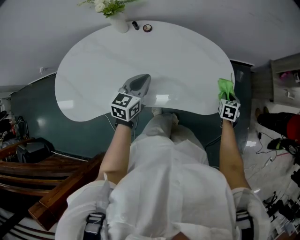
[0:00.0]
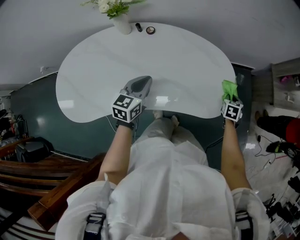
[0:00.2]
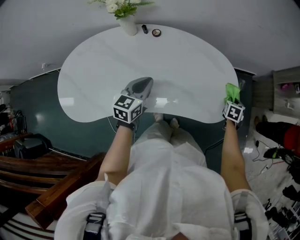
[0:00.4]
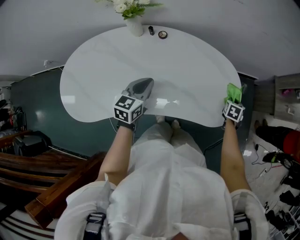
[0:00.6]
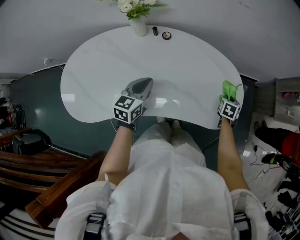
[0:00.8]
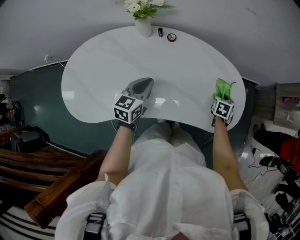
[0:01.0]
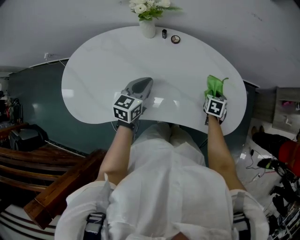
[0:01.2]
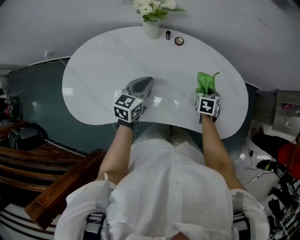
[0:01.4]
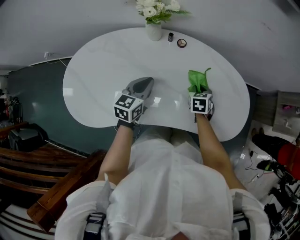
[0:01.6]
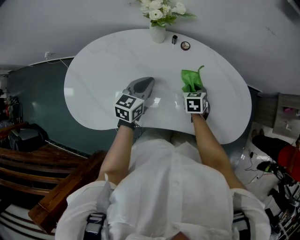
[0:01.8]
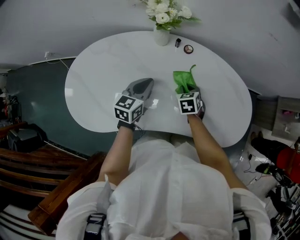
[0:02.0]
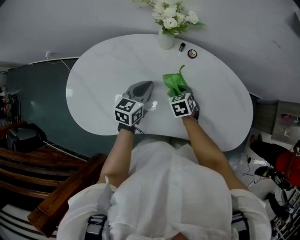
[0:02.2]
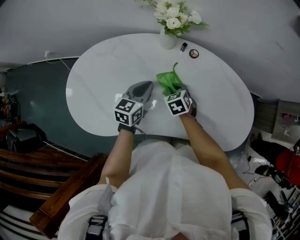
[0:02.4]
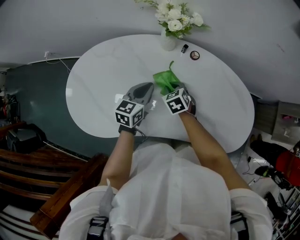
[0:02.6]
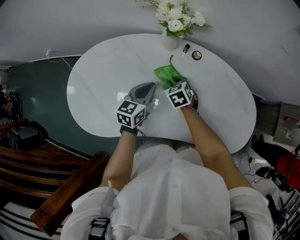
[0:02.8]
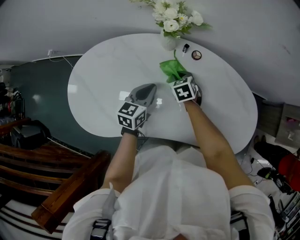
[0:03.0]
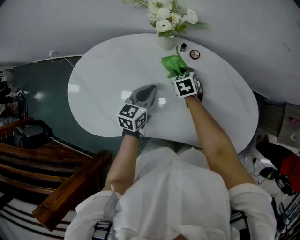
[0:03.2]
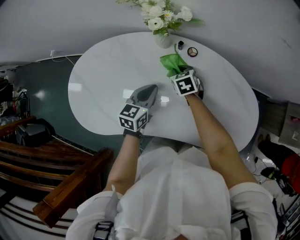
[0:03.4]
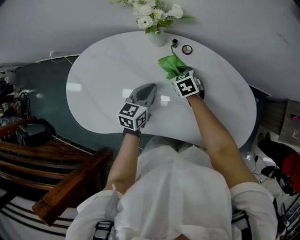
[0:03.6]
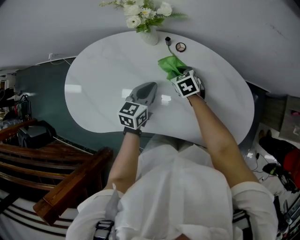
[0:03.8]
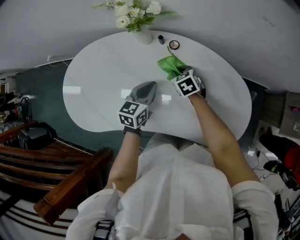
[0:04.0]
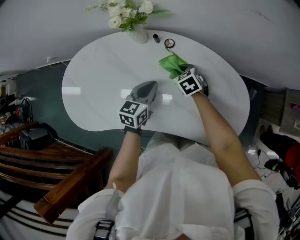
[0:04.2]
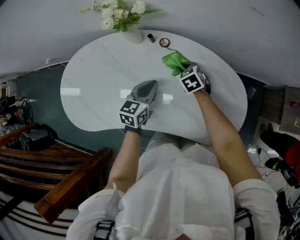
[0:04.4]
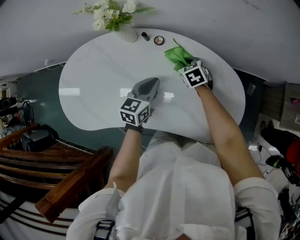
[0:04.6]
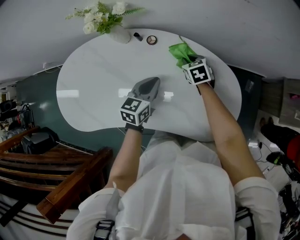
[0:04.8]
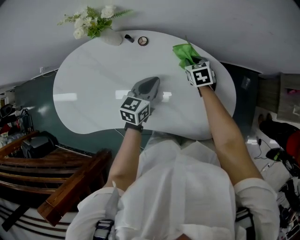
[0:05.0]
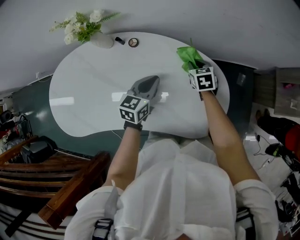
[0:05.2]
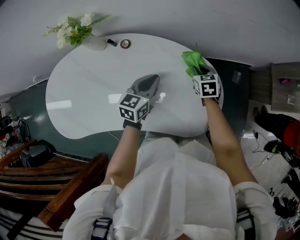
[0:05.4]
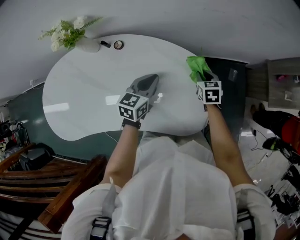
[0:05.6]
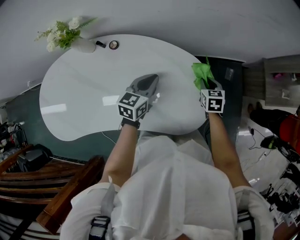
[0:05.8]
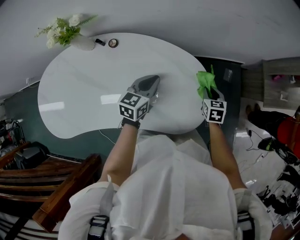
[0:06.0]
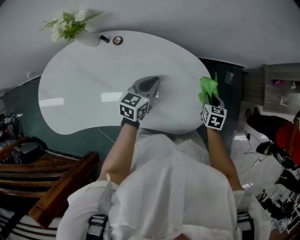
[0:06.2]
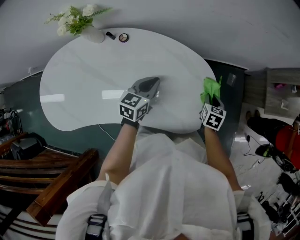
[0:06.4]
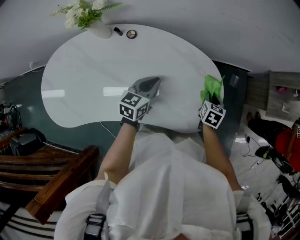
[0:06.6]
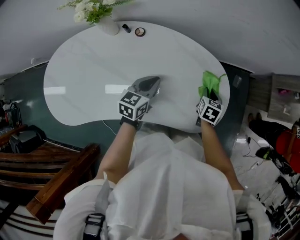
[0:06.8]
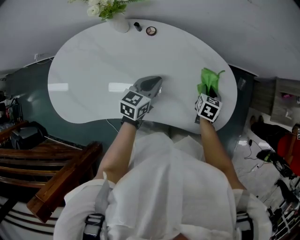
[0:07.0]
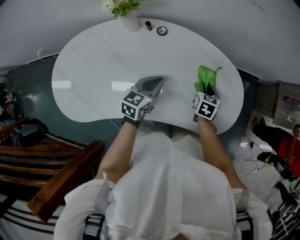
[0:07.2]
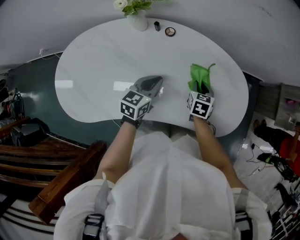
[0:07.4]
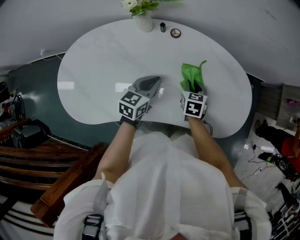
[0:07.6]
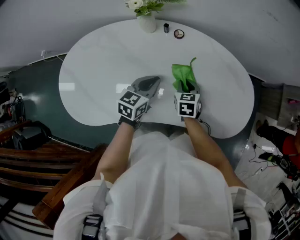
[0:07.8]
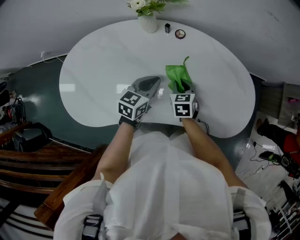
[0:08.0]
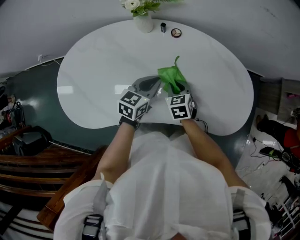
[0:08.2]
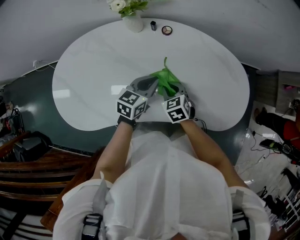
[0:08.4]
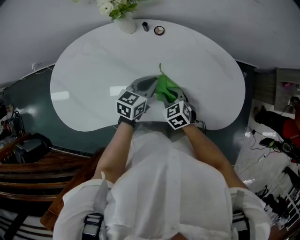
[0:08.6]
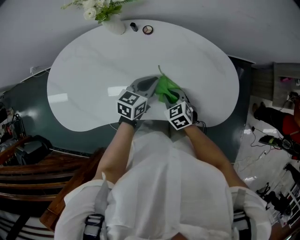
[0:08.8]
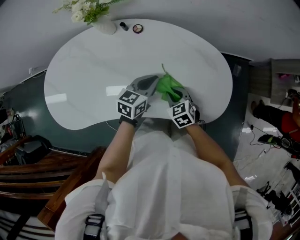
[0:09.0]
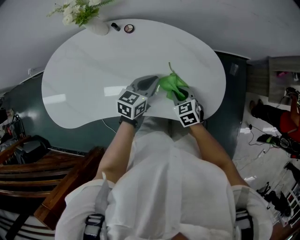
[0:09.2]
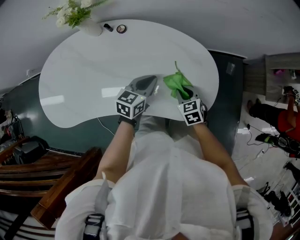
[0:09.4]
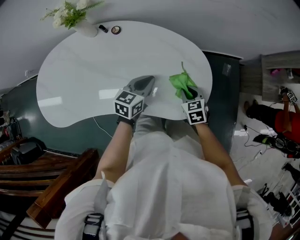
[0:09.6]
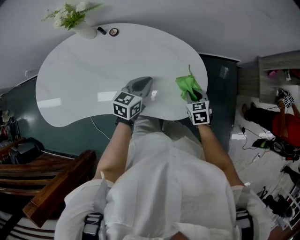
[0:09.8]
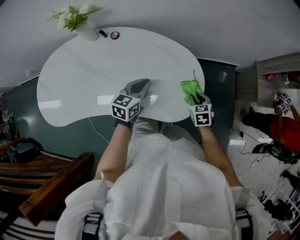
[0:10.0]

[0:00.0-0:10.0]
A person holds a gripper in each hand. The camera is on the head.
0:00.0 to 0:01.4: The right gripper moves to the left, some 30 cm; the left gripper moves to the left, approximately 15 cm.
0:01.4 to 0:02.8: The left gripper moves to the left, roughly 10 cm. The right gripper is displaced to the left by about 30 cm, and turns by some 40 degrees.
0:02.8 to 0:04.2: Both grippers move to the right, some 15 cm.
0:04.2 to 0:05.8: The right gripper changes place by approximately 40 cm, and changes its angle by approximately 40 degrees. Meanwhile the left gripper shifts by approximately 25 cm.
0:05.8 to 0:07.2: Both grippers travel together to the left and backward, approximately 20 cm.
0:07.2 to 0:08.6: The right gripper heads to the left and backward, covering approximately 25 cm, and rotates about 40 degrees.
0:08.6 to 0:10.0: The right gripper goes about 40 cm to the right, and changes its angle by roughly 20 degrees, while the left gripper goes about 20 cm to the right.

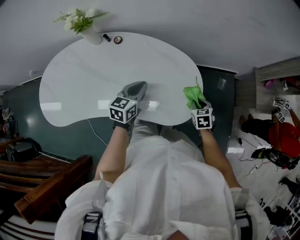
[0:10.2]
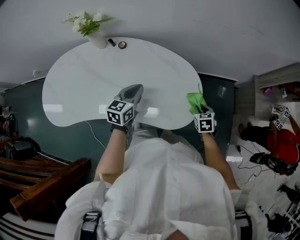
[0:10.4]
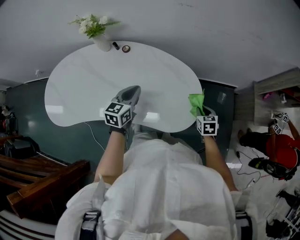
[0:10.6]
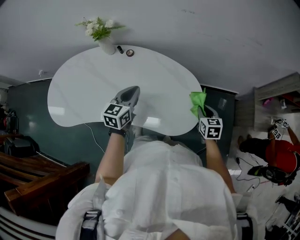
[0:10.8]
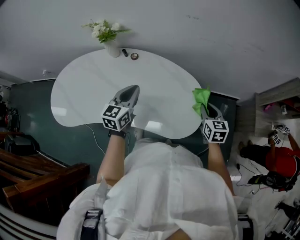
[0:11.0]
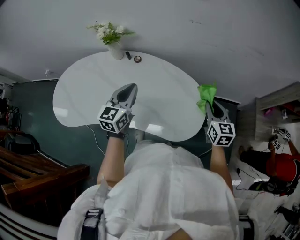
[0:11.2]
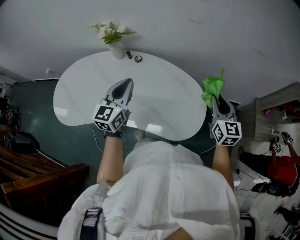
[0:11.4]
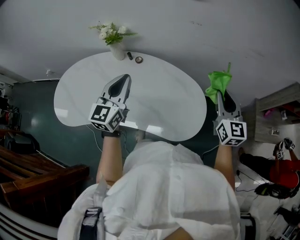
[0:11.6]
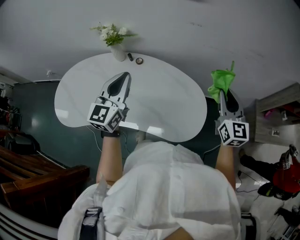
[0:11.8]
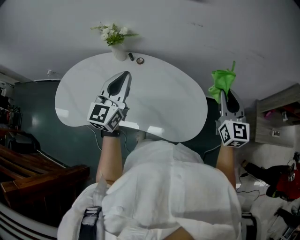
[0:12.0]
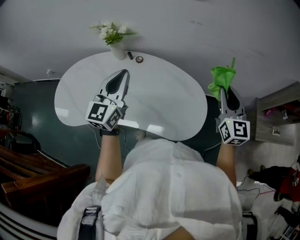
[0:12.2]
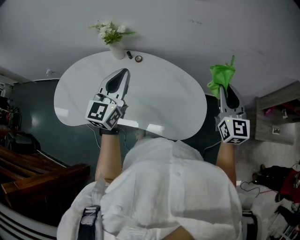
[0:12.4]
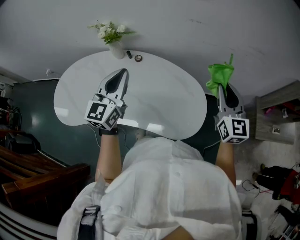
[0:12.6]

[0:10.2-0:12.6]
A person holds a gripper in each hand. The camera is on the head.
0:10.2 to 0:11.4: The left gripper heads upward and to the left, covering roughly 20 cm, and turns by approximately 30 degrees, while the right gripper is displaced upward by approximately 30 cm, and angles its fingers upward, by roughly 40 degrees.
0:11.4 to 0:12.6: The grippers both shift upward by about 5 cm.

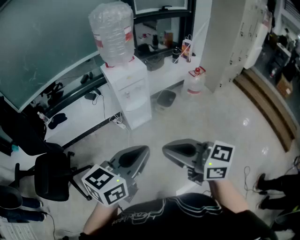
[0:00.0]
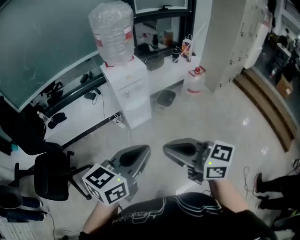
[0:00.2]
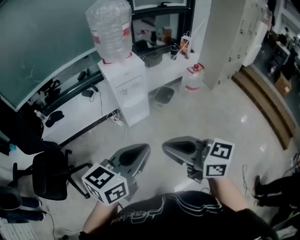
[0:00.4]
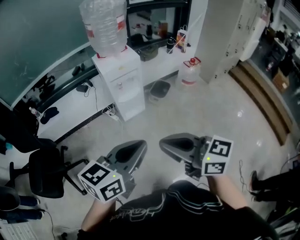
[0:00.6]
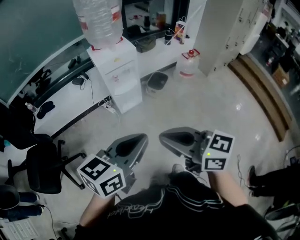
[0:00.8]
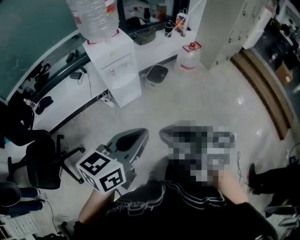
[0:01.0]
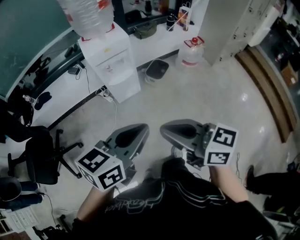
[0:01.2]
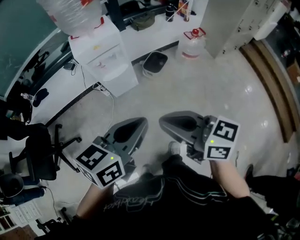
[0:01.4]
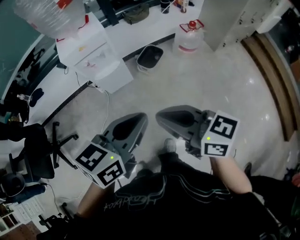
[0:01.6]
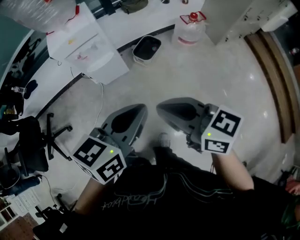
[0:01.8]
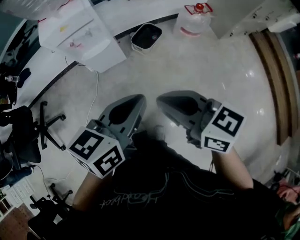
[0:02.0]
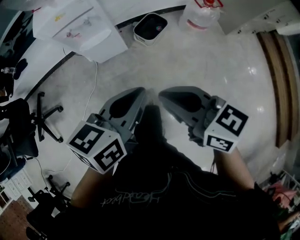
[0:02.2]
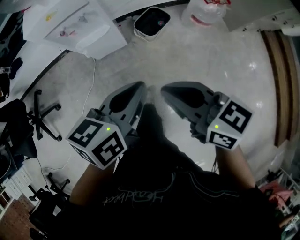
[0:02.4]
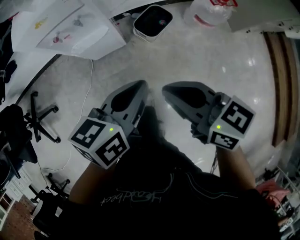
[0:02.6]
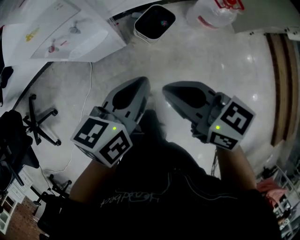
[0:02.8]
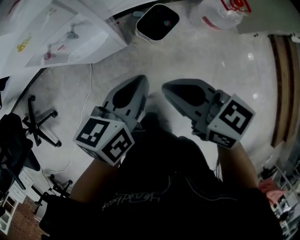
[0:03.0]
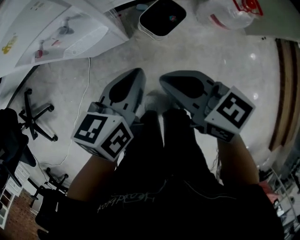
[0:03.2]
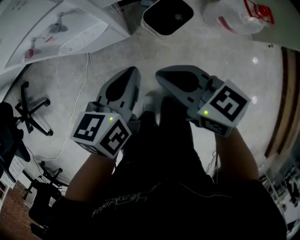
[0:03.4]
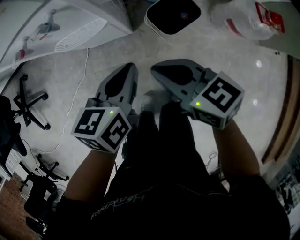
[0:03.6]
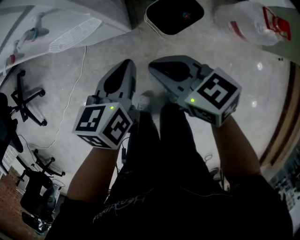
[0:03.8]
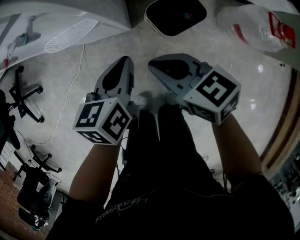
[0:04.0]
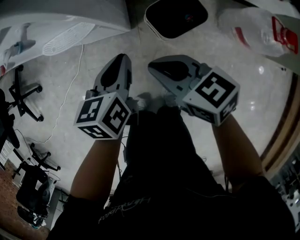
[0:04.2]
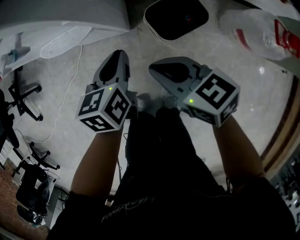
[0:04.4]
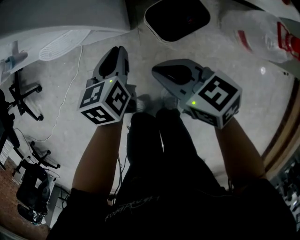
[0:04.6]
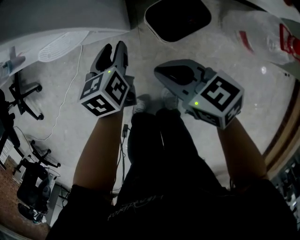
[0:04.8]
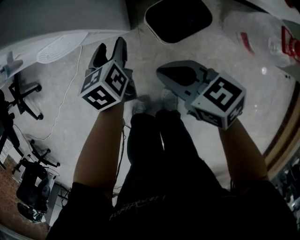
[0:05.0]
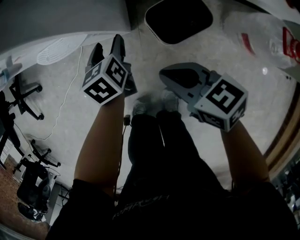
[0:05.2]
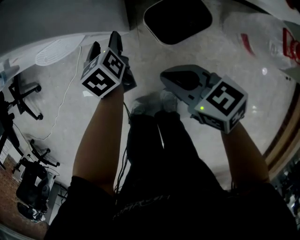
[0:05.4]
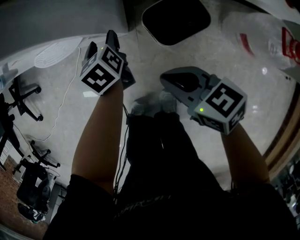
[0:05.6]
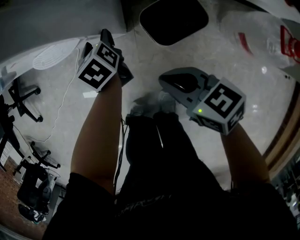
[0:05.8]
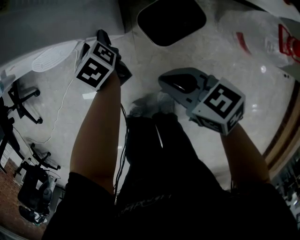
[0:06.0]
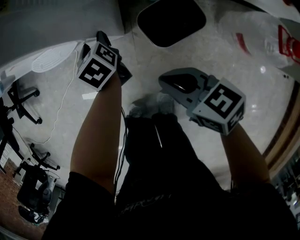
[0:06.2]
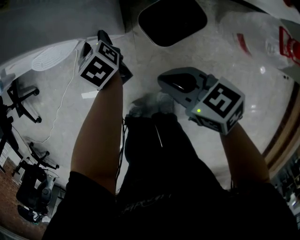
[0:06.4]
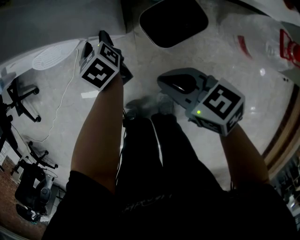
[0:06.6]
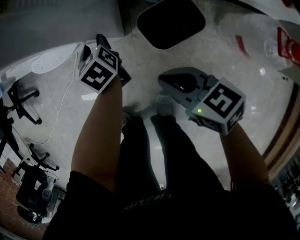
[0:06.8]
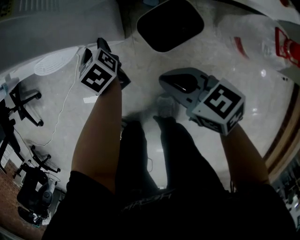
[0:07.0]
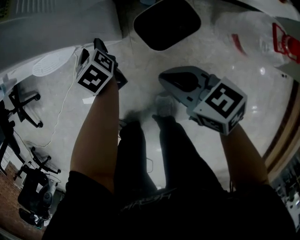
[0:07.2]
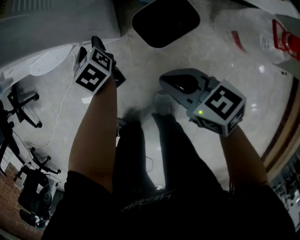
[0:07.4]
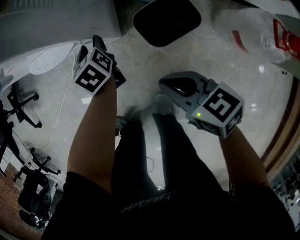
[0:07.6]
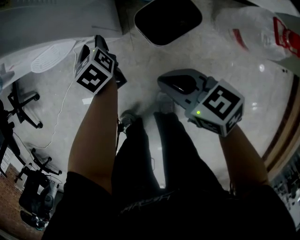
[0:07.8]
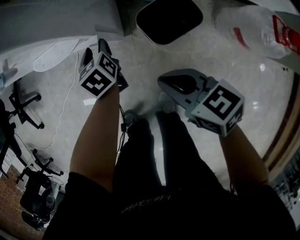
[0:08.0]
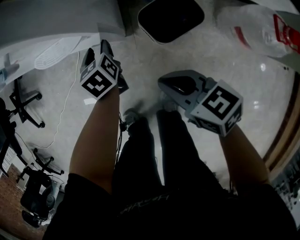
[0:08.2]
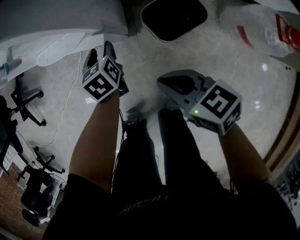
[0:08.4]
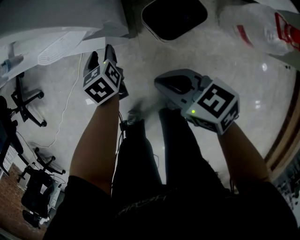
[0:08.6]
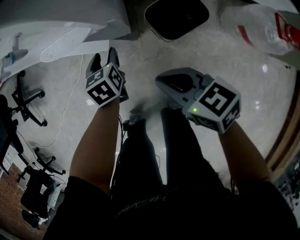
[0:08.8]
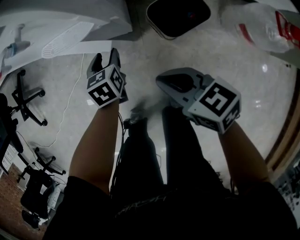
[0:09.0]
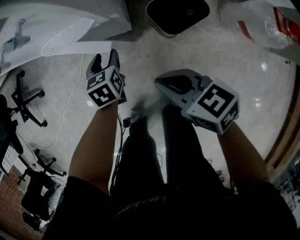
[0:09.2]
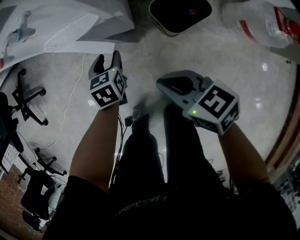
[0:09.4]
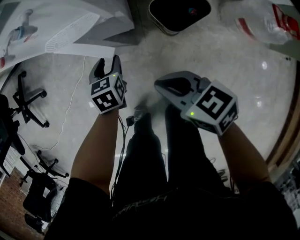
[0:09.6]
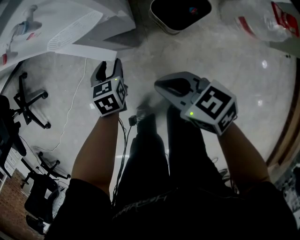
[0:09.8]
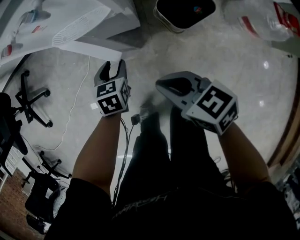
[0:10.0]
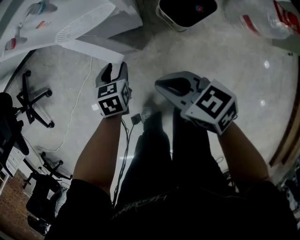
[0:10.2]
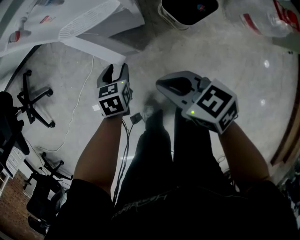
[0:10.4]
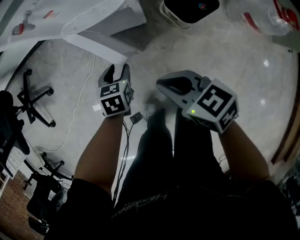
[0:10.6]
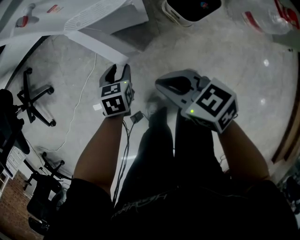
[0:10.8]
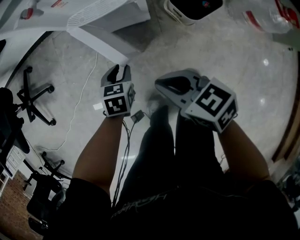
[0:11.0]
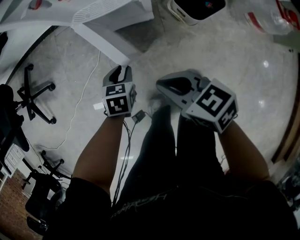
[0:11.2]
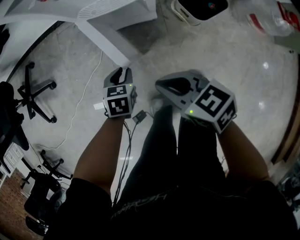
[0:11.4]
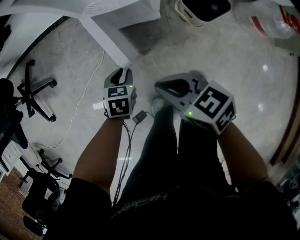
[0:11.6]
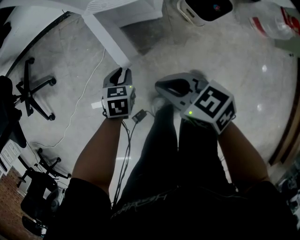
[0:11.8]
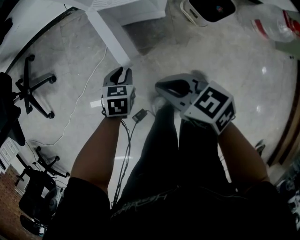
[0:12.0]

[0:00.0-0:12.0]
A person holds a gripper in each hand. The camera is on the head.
0:00.0 to 0:01.6: The left gripper is displaced to the right and forward by about 30 cm, while the right gripper is displaced to the right, forward and downward by approximately 30 cm.
0:01.6 to 0:03.0: Both grippers move forward and downward, about 40 cm. The left gripper swivels about 20 degrees.
0:03.0 to 0:04.4: The two grippers go about 25 cm downward. The right gripper swivels roughly 20 degrees. Meanwhile the left gripper changes its angle by approximately 30 degrees.
0:04.4 to 0:06.0: The right gripper ends up about 5 cm from where it was, while the left gripper heads forward and downward, covering roughly 15 cm, changes its angle by some 30 degrees, and opens its fingers.
0:06.0 to 0:07.6: The grippers stay close to where they were, moving slightly.
0:07.6 to 0:09.0: The left gripper is displaced to the left and backward by some 10 cm. The right gripper heads to the left, covering roughly 5 cm.
0:09.0 to 0:10.4: The right gripper shifts roughly 10 cm to the left, while the left gripper is displaced to the left and backward by approximately 10 cm.
0:10.4 to 0:12.0: The grippers both shift to the left by about 15 cm. The left gripper closes its fingers.
